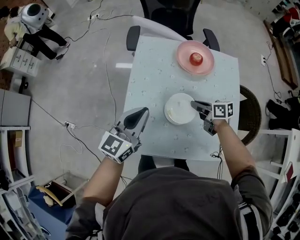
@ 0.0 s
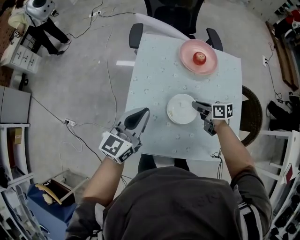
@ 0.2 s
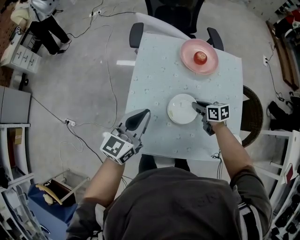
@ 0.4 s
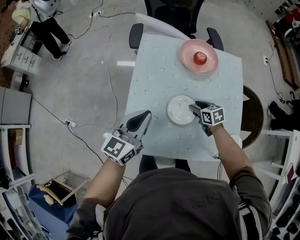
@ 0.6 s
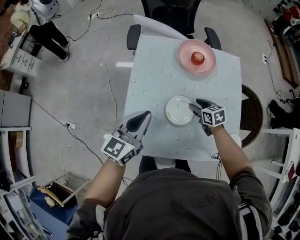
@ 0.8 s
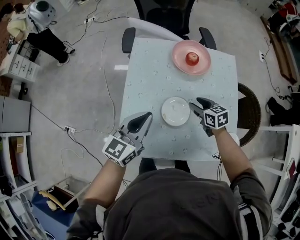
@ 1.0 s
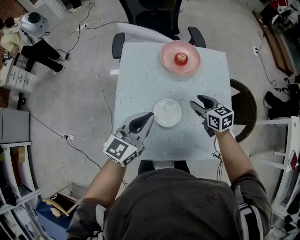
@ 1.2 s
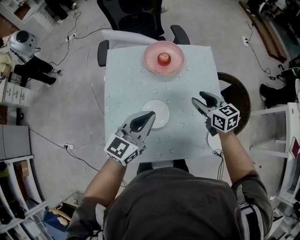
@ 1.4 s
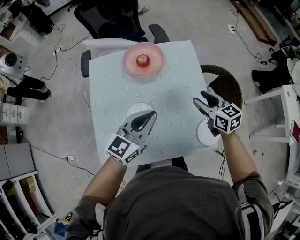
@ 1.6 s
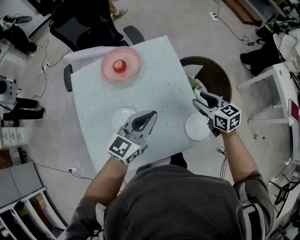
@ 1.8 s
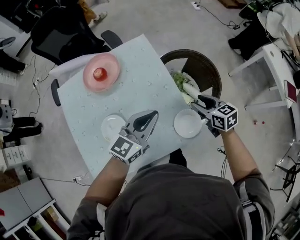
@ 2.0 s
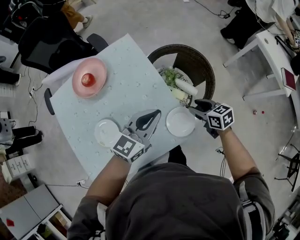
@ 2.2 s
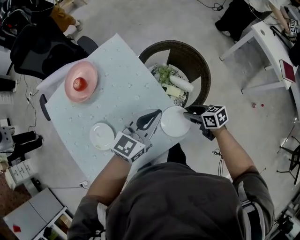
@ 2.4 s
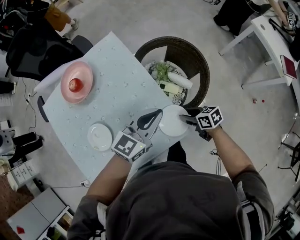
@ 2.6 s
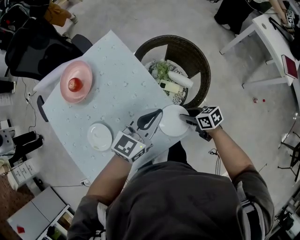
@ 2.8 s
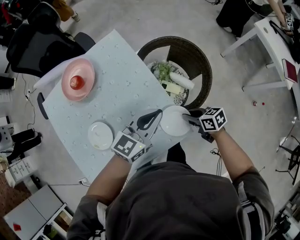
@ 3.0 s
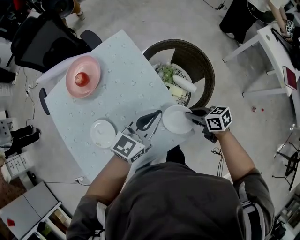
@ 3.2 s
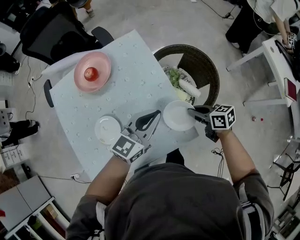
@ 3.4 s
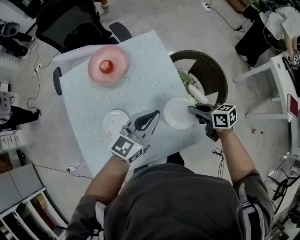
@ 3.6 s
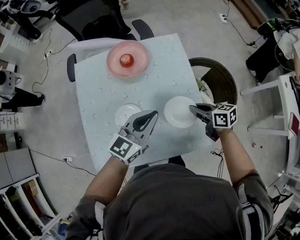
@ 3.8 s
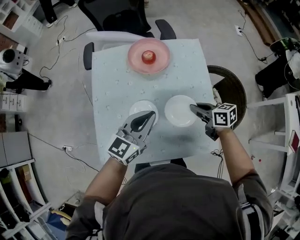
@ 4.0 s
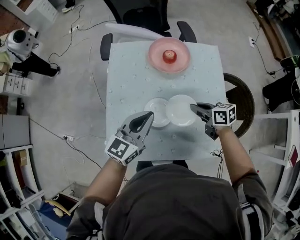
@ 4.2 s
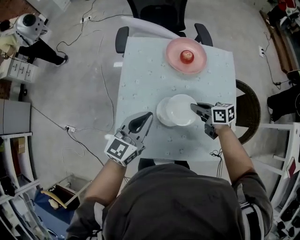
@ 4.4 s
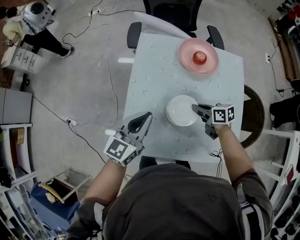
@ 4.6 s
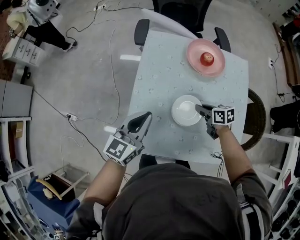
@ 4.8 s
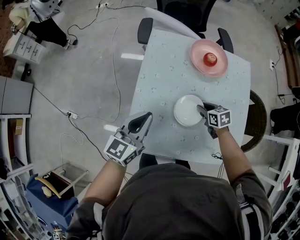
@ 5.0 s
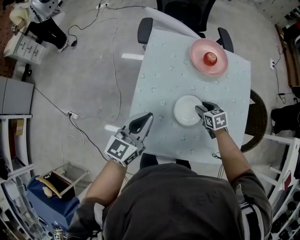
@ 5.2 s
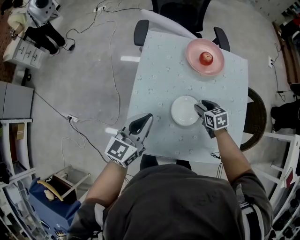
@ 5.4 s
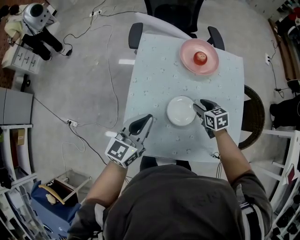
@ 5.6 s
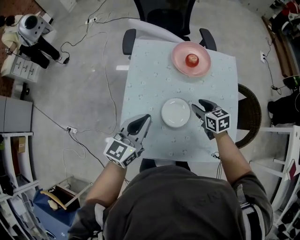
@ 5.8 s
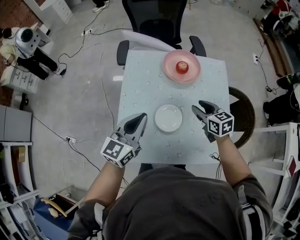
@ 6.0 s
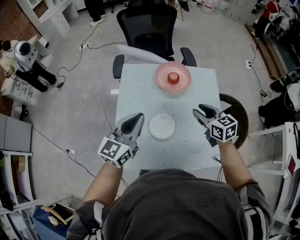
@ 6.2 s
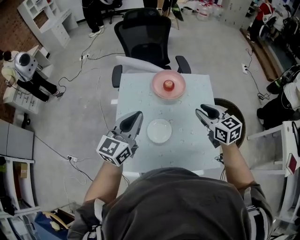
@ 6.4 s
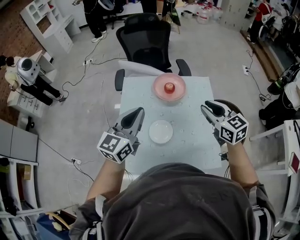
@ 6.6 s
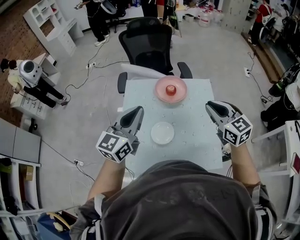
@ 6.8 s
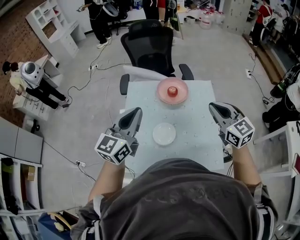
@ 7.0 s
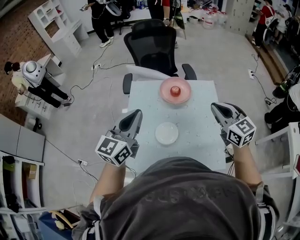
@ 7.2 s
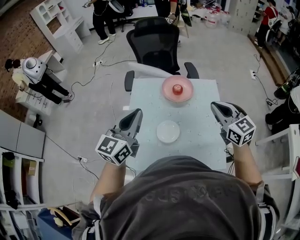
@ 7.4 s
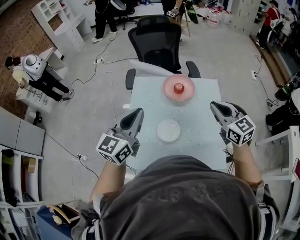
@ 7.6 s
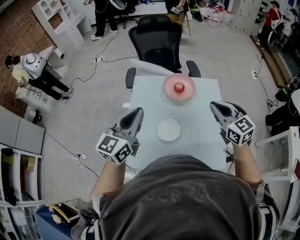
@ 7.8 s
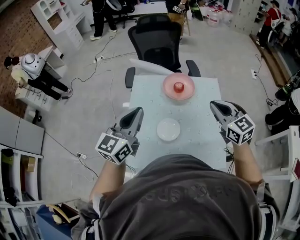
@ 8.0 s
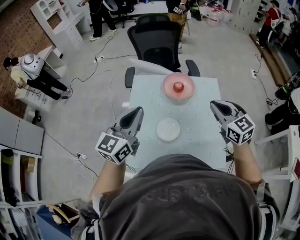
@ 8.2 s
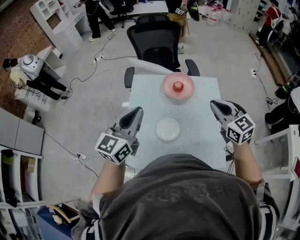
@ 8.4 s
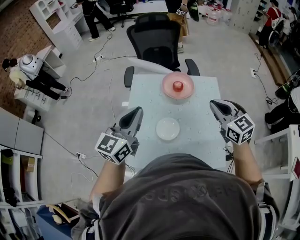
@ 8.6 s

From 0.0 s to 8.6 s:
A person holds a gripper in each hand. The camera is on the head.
From 0.0 s to 1.4 s: The right gripper is displaced to the right and upward by about 15 cm, rotates about 30 degrees, and opens. The left gripper travels to the right by about 15 cm.
From 1.4 s to 2.8 s: The left gripper moves to the right, approximately 40 cm, and changes its angle by some 40 degrees. The right gripper is displaced to the right and downward by about 35 cm, changes its angle by approximately 40 degrees, and closes up.
From 2.8 s to 4.4 s: The pair of grippers is taken some 40 cm. The right gripper rotates about 30 degrees, and closes its fingers. The left gripper rotates approximately 50 degrees.
From 4.4 s to 5.8 s: The right gripper goes downward and returns, roughly 10 cm each way, rotates roughly 30 degrees, and opens up.
From 5.8 s to 7.2 s: The two grippers go about 25 cm upward. The right gripper swivels some 30 degrees, and closes.
From 7.2 s to 8.6 s: The grippers move only a little.

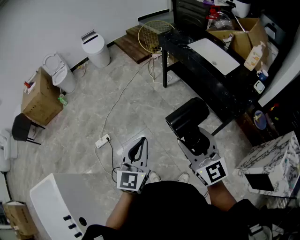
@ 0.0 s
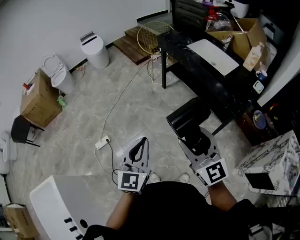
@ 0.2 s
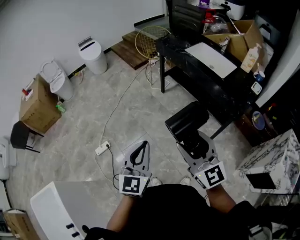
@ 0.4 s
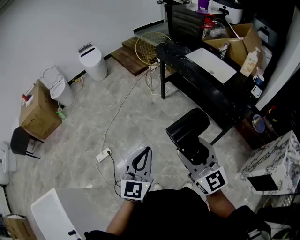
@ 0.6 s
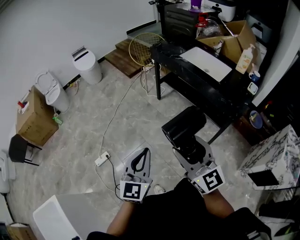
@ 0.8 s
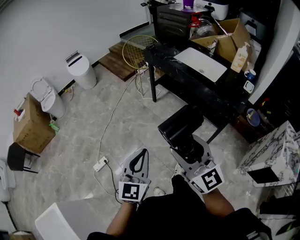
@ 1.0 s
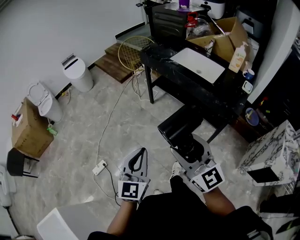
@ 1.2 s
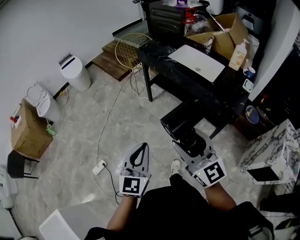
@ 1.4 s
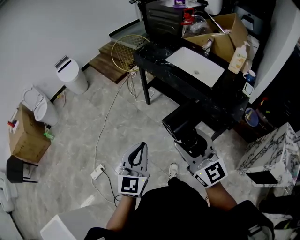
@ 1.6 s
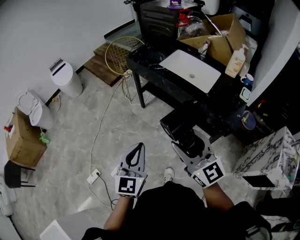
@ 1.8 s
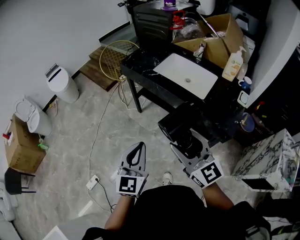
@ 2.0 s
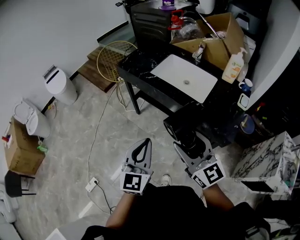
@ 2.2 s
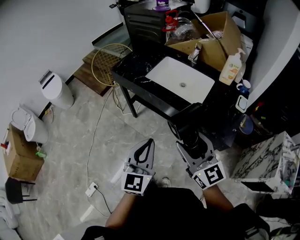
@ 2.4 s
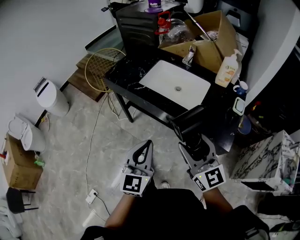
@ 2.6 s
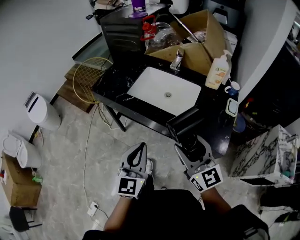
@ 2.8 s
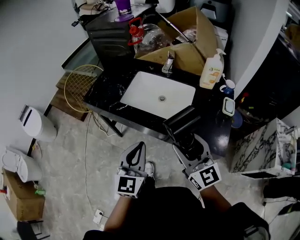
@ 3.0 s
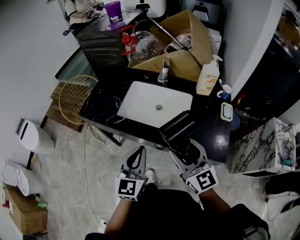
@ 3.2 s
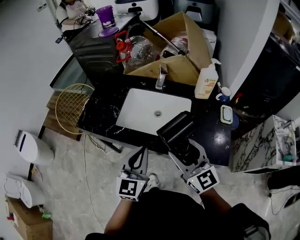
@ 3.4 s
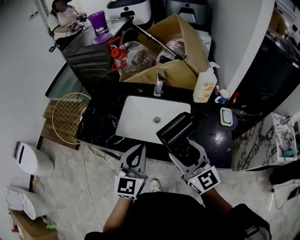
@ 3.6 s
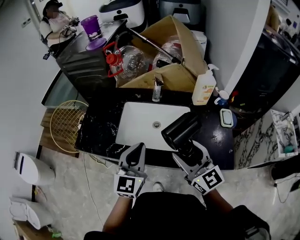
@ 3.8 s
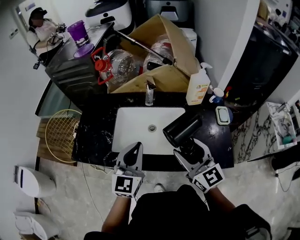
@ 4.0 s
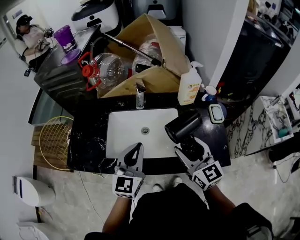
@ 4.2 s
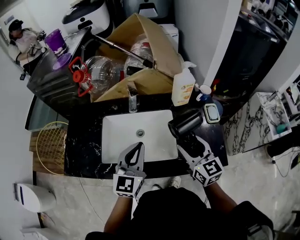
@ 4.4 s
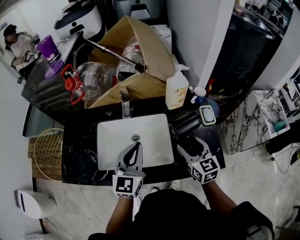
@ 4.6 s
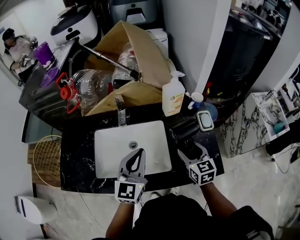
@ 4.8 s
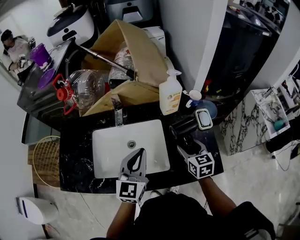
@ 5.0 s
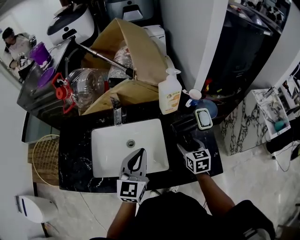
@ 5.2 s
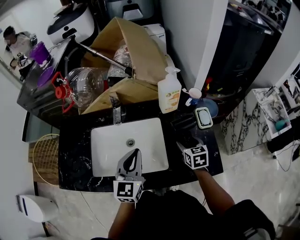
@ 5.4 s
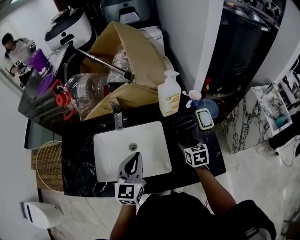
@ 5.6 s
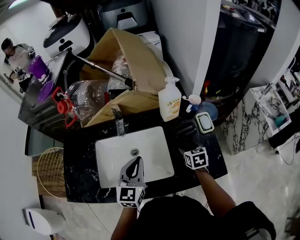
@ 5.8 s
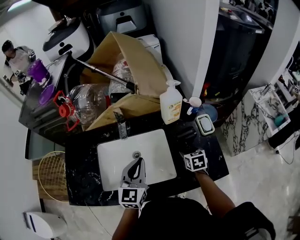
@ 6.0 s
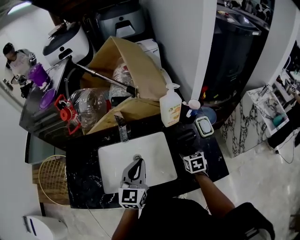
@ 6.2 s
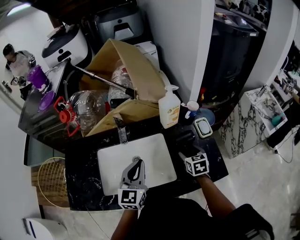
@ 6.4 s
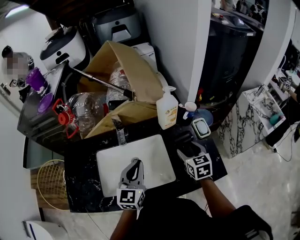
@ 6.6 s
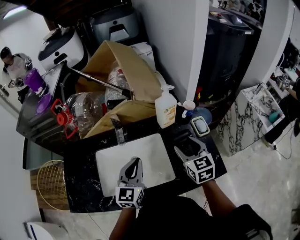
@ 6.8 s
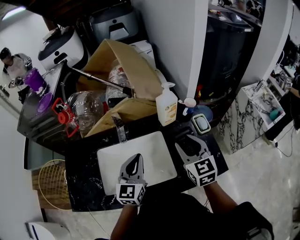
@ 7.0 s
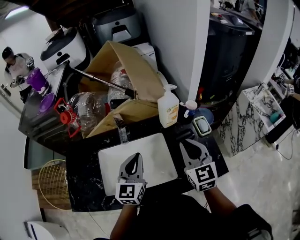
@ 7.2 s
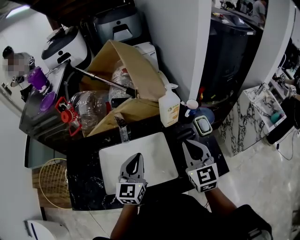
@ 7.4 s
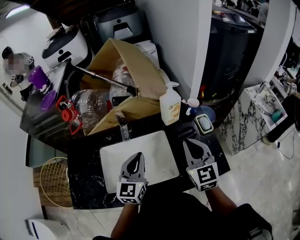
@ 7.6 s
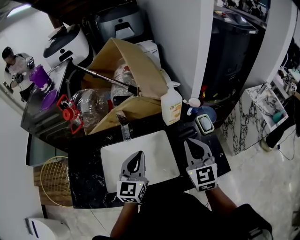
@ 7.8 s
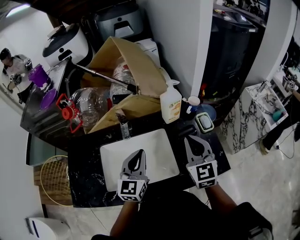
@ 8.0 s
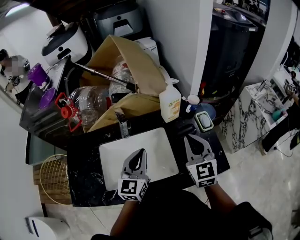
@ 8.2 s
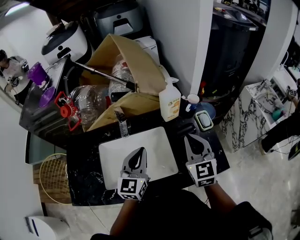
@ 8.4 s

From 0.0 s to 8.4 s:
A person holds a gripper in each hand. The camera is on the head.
From 0.0 s to 1.4 s: Both grippers move forward, some 10 cm.
From 1.4 s to 2.8 s: The two grippers go some 35 cm forward and to the right. The right gripper turns by approximately 20 degrees.
From 2.8 s to 4.2 s: The left gripper changes place by about 30 cm, and swivels about 30 degrees; the right gripper changes place by some 20 cm, and changes its angle by about 30 degrees.
From 4.2 s to 5.6 s: The right gripper goes approximately 25 cm downward, to the right and forward, and points its fingers some 40 degrees further downward, while the left gripper heads forward and to the right, covering about 10 cm.
From 5.6 s to 7.0 s: The right gripper heads upward, covering about 20 cm, and swivels about 30 degrees.
From 7.0 s to 8.4 s: The right gripper closes.

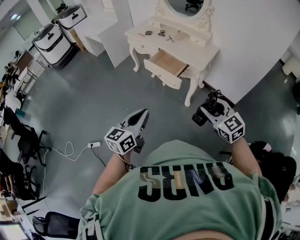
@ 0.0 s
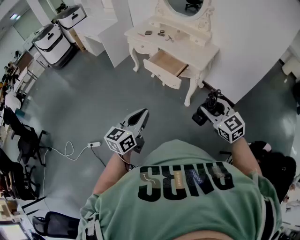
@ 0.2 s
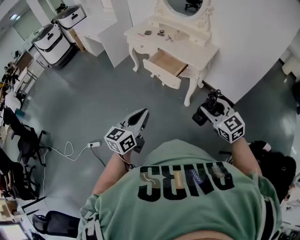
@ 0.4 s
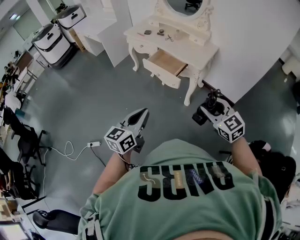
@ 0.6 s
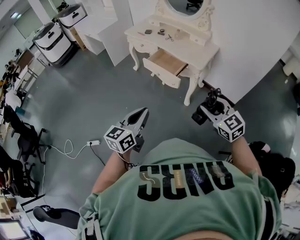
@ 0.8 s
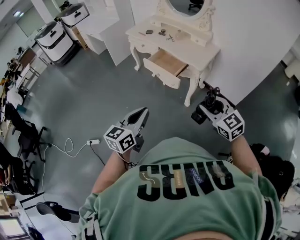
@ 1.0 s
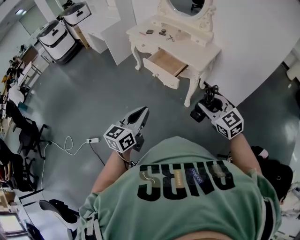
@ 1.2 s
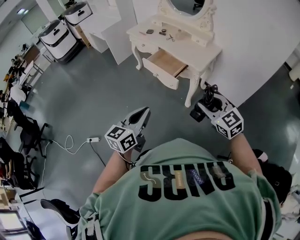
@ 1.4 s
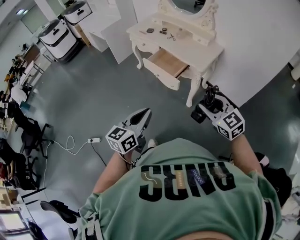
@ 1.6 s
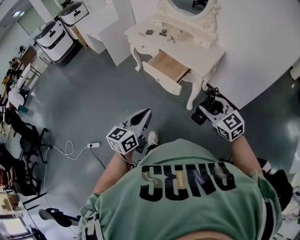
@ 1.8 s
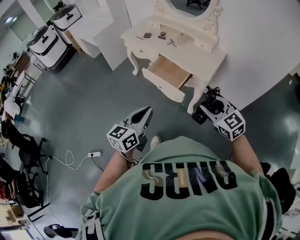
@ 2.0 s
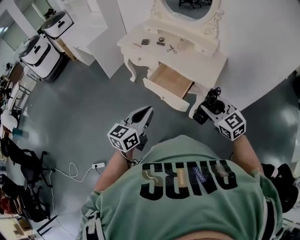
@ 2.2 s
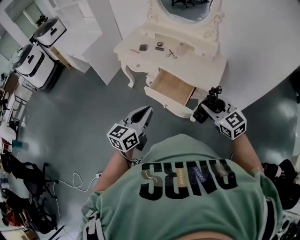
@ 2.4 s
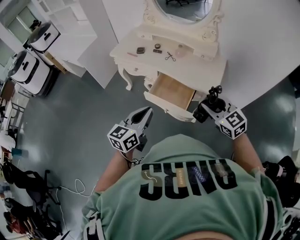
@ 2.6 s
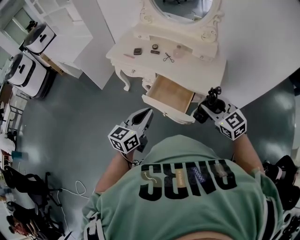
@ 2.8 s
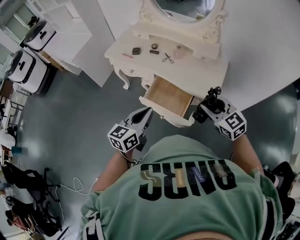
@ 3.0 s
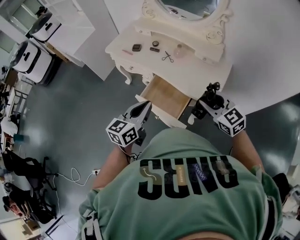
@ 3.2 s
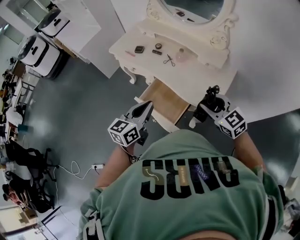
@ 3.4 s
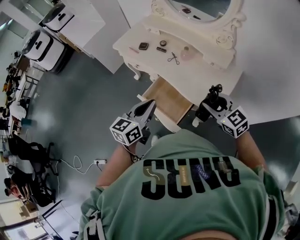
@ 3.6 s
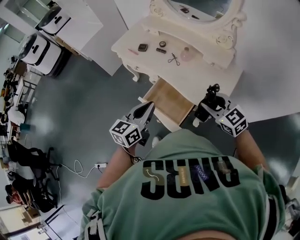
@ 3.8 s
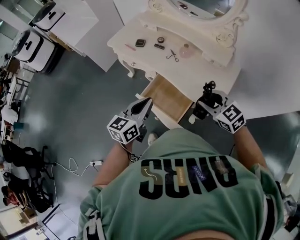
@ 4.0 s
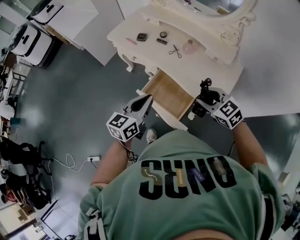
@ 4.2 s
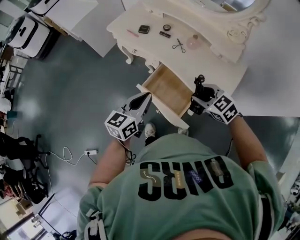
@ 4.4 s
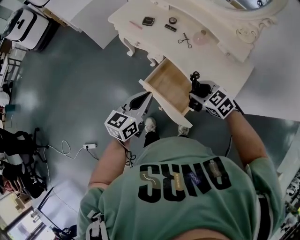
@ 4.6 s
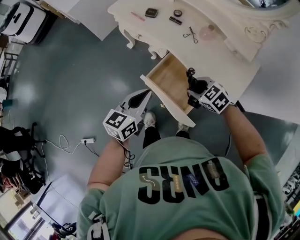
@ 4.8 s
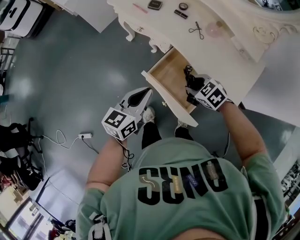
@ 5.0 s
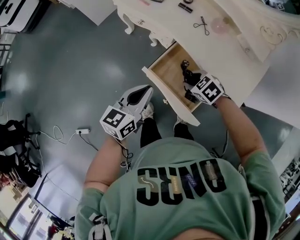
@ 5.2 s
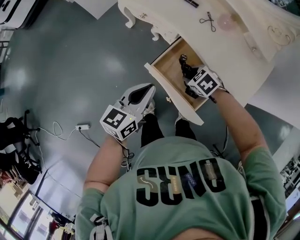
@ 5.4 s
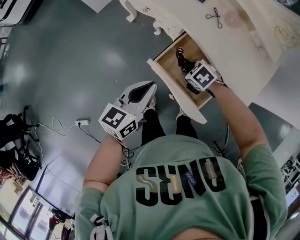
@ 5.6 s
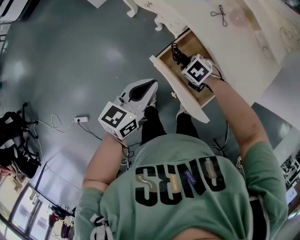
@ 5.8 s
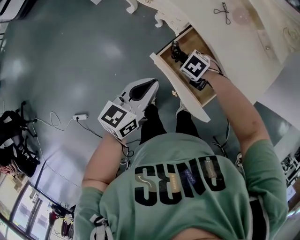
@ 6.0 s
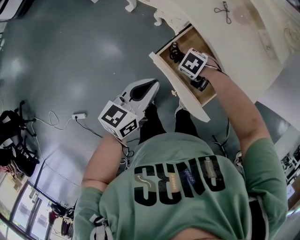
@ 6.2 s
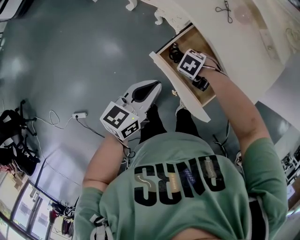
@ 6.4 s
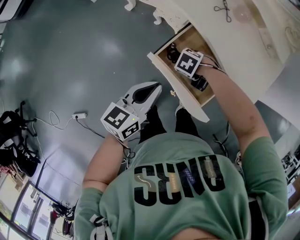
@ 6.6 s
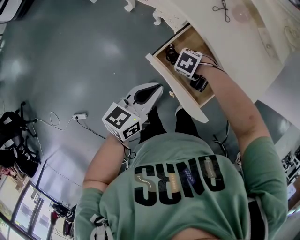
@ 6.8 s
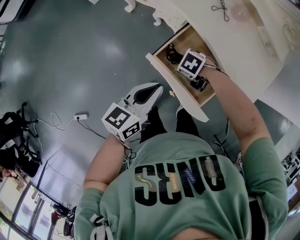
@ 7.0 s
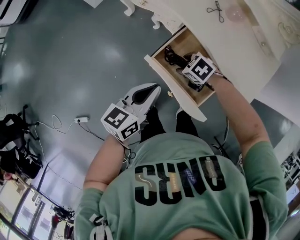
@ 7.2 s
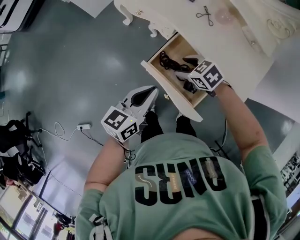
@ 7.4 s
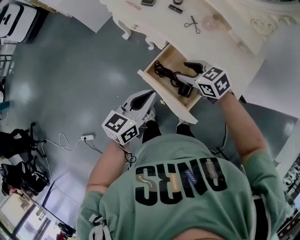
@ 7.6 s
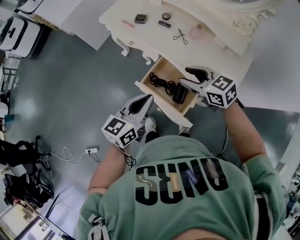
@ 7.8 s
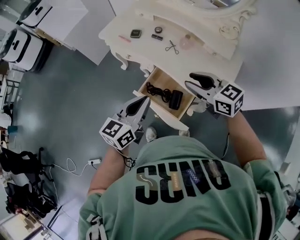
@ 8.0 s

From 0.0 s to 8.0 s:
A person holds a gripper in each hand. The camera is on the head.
From 0.0 s to 1.6 s: The left gripper travels to the right by about 10 cm; the right gripper heads forward and to the right, covering some 10 cm.
From 1.6 s to 3.2 s: The pair of grippers is taken forward, roughly 50 cm.
From 3.2 s to 4.8 s: The left gripper goes approximately 15 cm downward, forward and to the left. The right gripper travels downward, forward and to the left by roughly 30 cm, and tips its fingers downward by about 30 degrees.
From 4.8 s to 6.4 s: The left gripper travels downward by approximately 10 cm. Meanwhile the right gripper moves downward, roughly 20 cm, and rotates some 40 degrees.
From 6.4 s to 8.0 s: The right gripper is displaced upward by some 40 cm, tilts its fingers approximately 60 degrees upward, and opens, then closes again, while the left gripper moves upward, roughly 20 cm.
